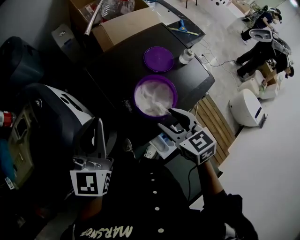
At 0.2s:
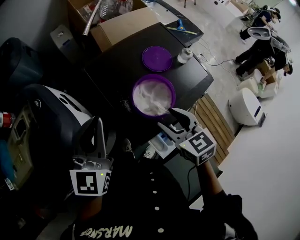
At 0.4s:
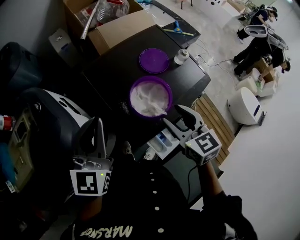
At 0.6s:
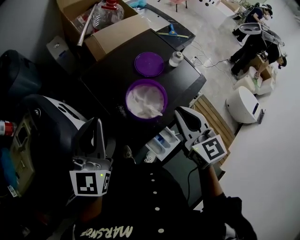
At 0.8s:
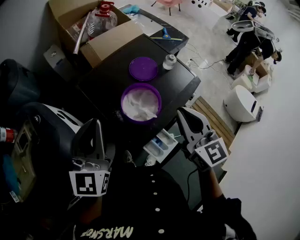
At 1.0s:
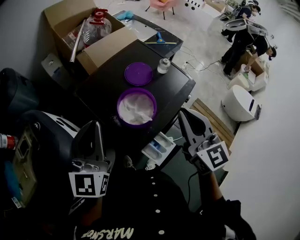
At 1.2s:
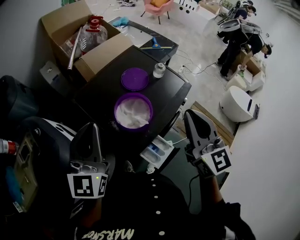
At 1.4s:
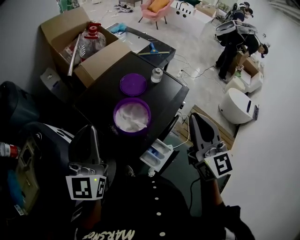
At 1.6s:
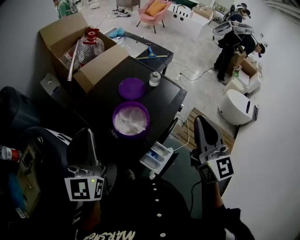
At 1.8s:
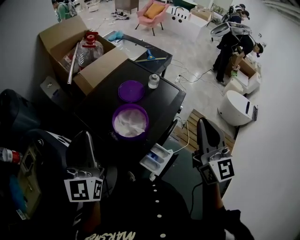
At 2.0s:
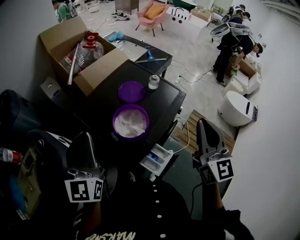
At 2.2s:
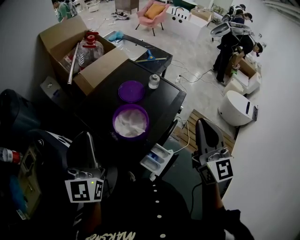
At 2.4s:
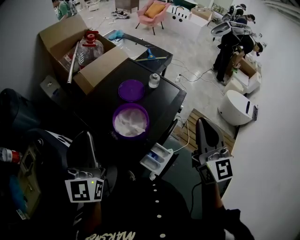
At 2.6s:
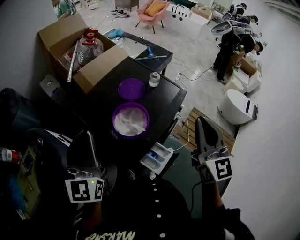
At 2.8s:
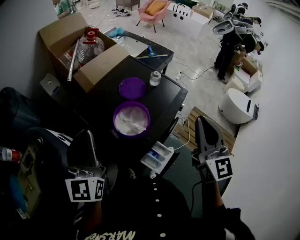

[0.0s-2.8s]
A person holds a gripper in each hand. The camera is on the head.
0.0s to 1.4s: The right gripper heads upward and to the right, covering about 25 cm, points its fingers approximately 40 degrees further upward, and closes its fingers. The left gripper heads upward and to the right, covering roughly 10 cm.
1.4s to 2.8s: The grippers make only small movements.

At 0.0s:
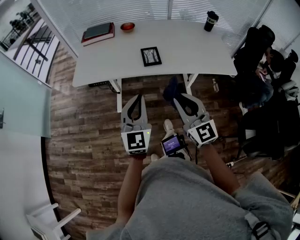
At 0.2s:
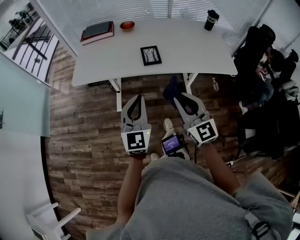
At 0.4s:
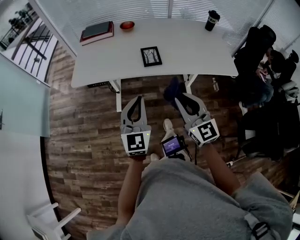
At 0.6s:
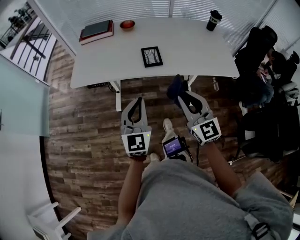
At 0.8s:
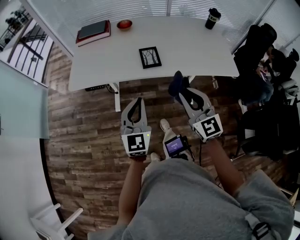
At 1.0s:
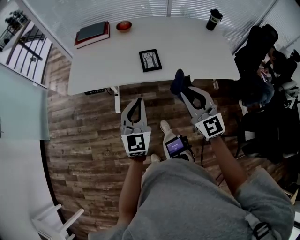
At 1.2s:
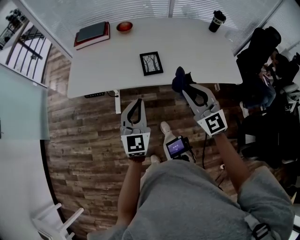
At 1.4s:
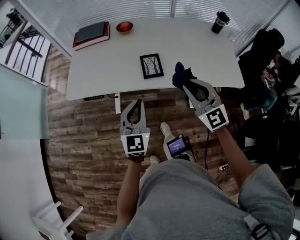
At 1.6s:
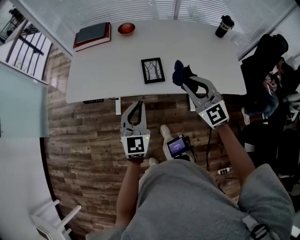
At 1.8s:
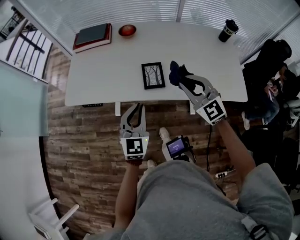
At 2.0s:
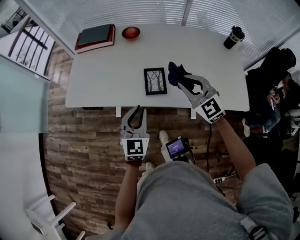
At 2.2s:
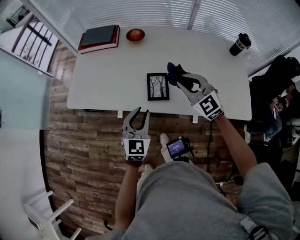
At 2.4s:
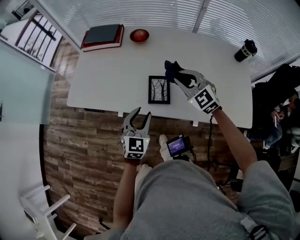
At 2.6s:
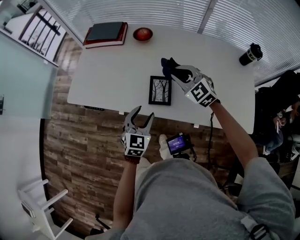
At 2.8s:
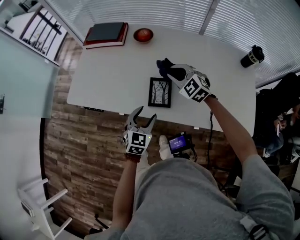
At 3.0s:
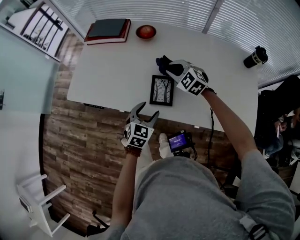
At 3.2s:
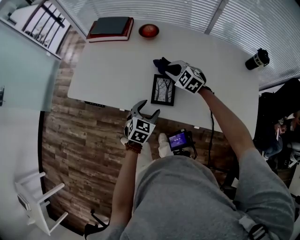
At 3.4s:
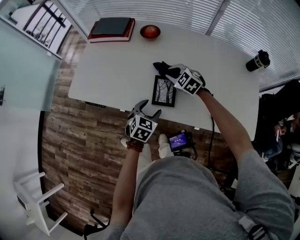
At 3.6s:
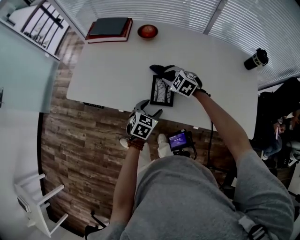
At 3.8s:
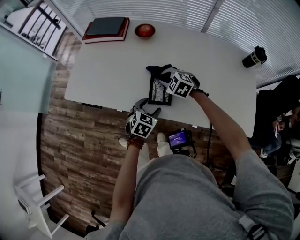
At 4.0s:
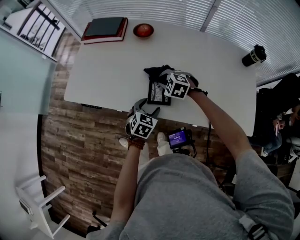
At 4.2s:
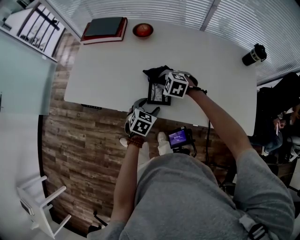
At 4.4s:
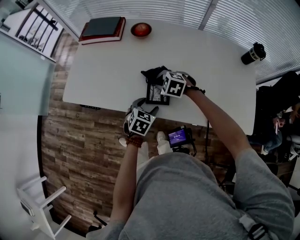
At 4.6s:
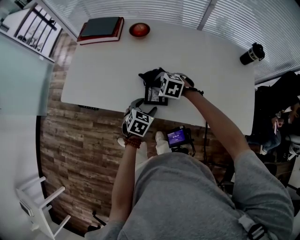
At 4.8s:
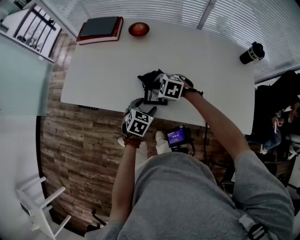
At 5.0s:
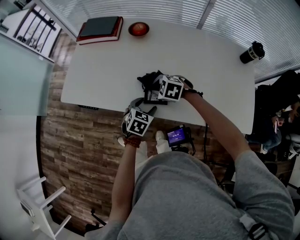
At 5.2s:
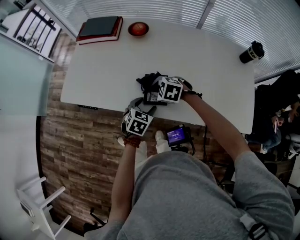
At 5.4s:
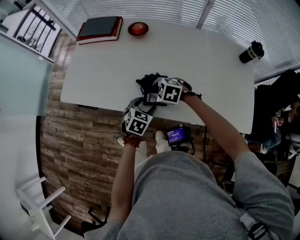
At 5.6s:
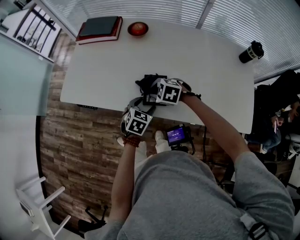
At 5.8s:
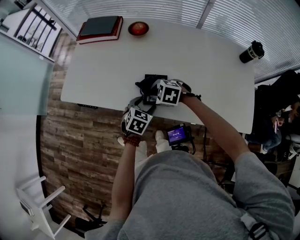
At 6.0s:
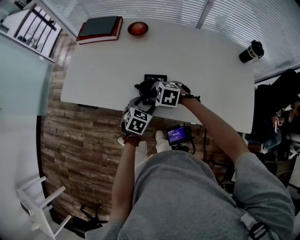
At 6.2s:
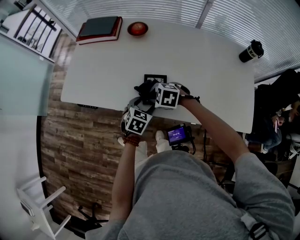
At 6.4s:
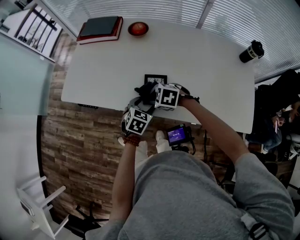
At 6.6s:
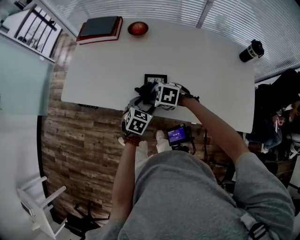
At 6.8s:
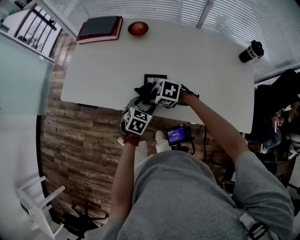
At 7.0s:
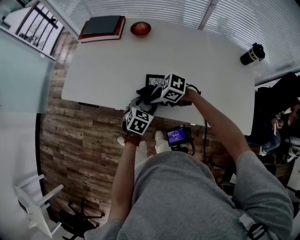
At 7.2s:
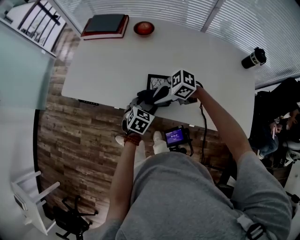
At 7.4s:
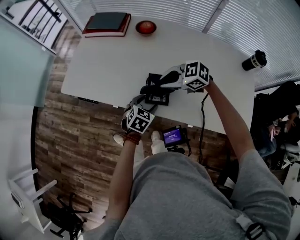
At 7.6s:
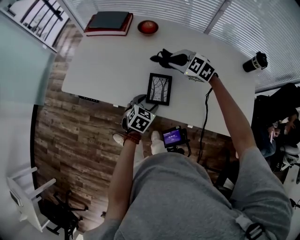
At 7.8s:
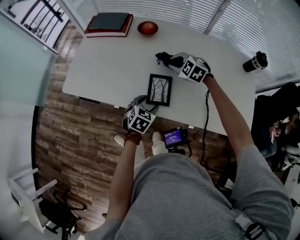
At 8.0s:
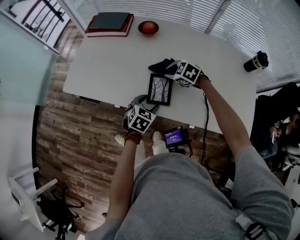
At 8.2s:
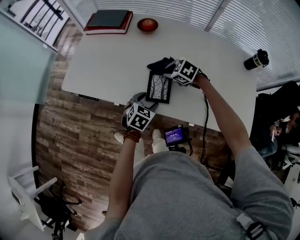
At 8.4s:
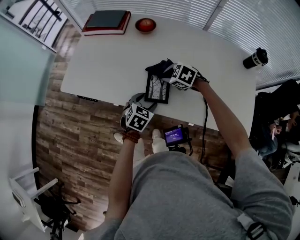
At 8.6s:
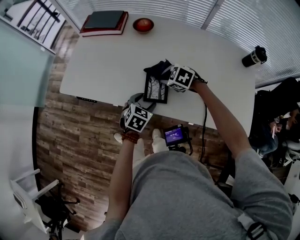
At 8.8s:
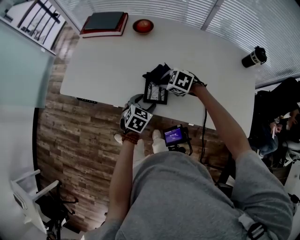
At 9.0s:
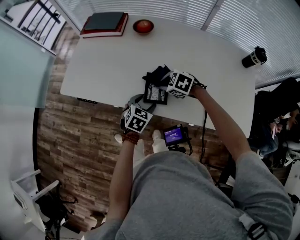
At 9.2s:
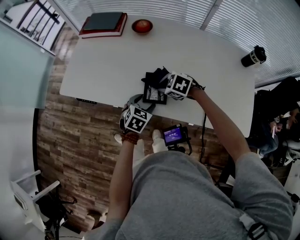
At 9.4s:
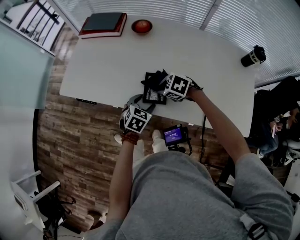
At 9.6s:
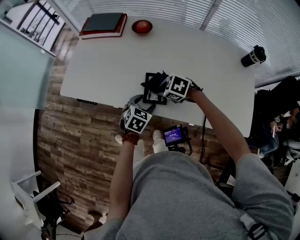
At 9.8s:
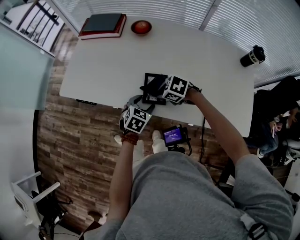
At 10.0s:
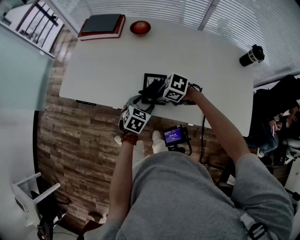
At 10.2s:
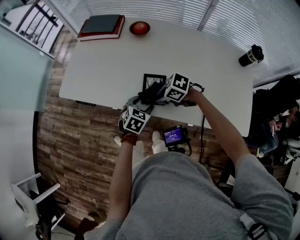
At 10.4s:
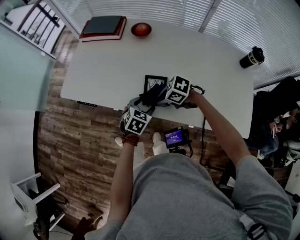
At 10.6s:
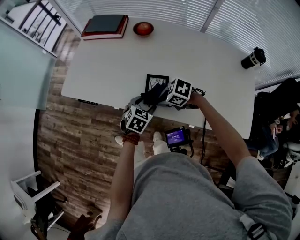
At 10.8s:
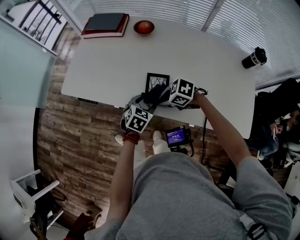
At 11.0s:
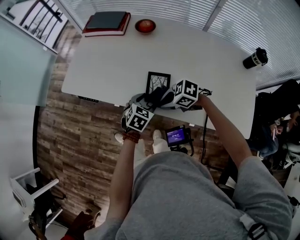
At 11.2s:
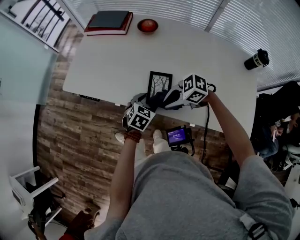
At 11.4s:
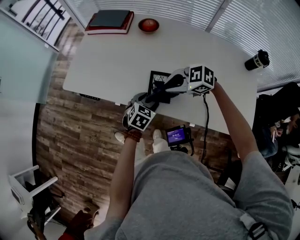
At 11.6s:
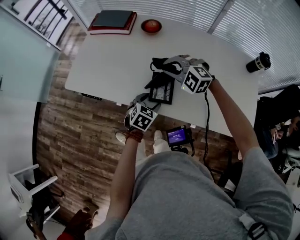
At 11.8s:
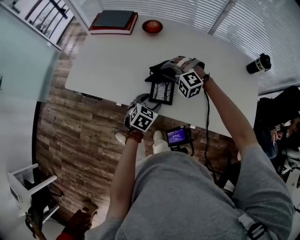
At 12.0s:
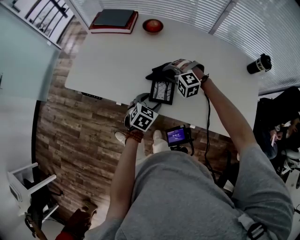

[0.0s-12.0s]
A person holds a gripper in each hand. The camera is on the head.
0.0s to 1.6s: The two grippers go approximately 20 cm forward. The right gripper turns by about 20 degrees.
1.6s to 3.0s: The right gripper is displaced forward and downward by approximately 30 cm, and swivels roughly 30 degrees. Meanwhile the left gripper shifts some 20 cm downward, forward and to the right, rotates roughly 20 degrees, and opens its fingers.
3.0s to 4.4s: The right gripper heads downward and backward, covering about 10 cm, and swivels roughly 20 degrees.
4.4s to 6.0s: The right gripper shifts approximately 5 cm backward.
6.0s to 7.6s: The right gripper changes place by approximately 20 cm, and changes its angle by roughly 20 degrees.
7.6s to 9.0s: The right gripper travels downward and backward by about 15 cm, and changes its angle by some 30 degrees.
9.0s to 10.4s: The right gripper shifts by some 5 cm, and swivels about 20 degrees.
10.4s to 12.0s: The right gripper reaches some 10 cm upward, then returns, and twists some 60 degrees counterclockwise, seen from behind.

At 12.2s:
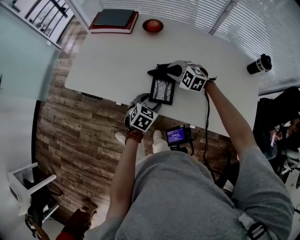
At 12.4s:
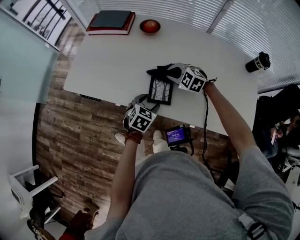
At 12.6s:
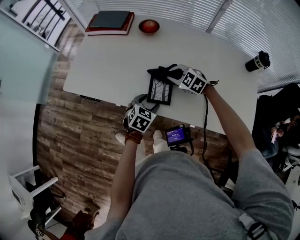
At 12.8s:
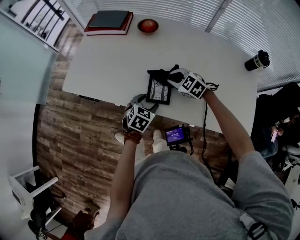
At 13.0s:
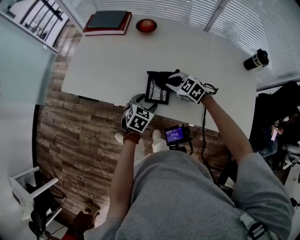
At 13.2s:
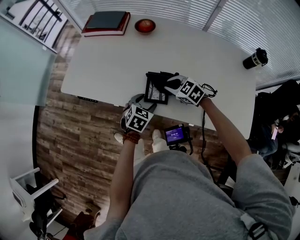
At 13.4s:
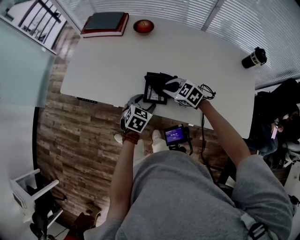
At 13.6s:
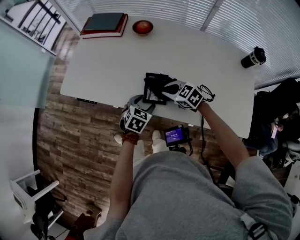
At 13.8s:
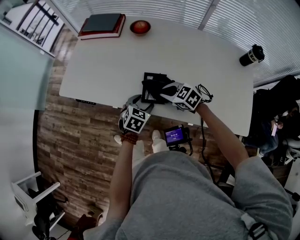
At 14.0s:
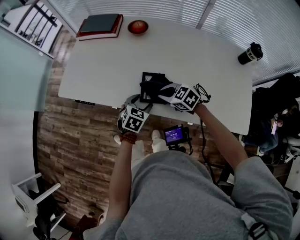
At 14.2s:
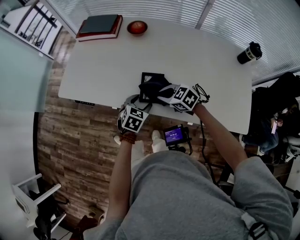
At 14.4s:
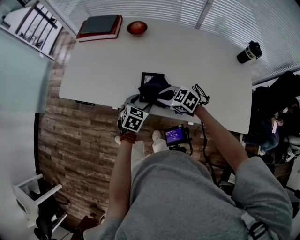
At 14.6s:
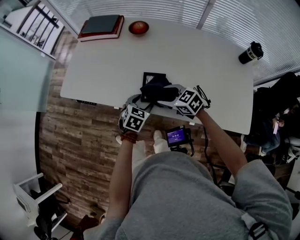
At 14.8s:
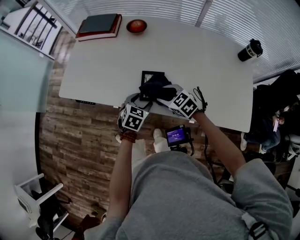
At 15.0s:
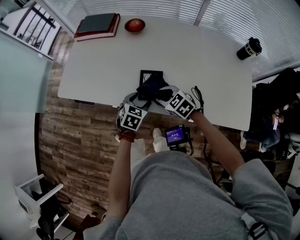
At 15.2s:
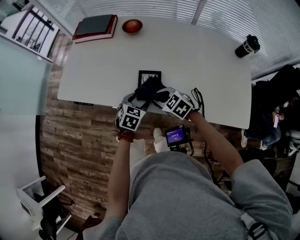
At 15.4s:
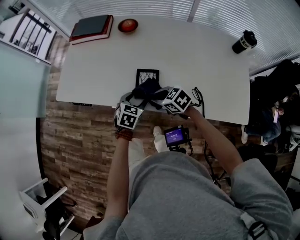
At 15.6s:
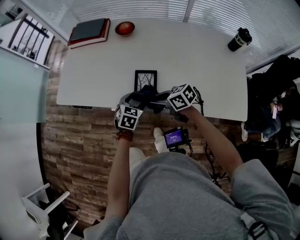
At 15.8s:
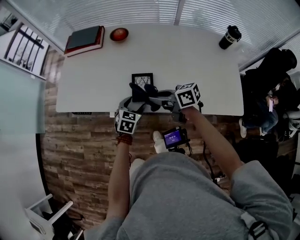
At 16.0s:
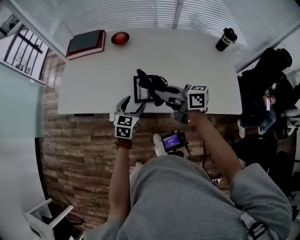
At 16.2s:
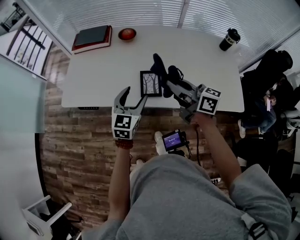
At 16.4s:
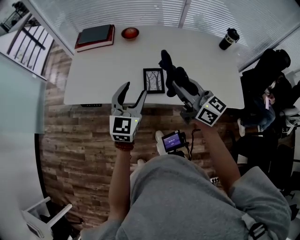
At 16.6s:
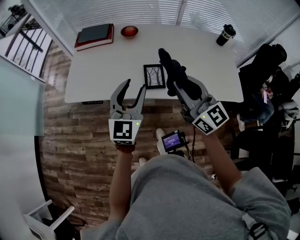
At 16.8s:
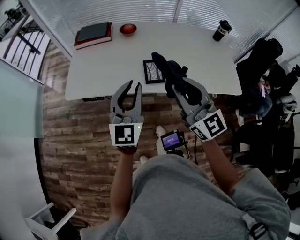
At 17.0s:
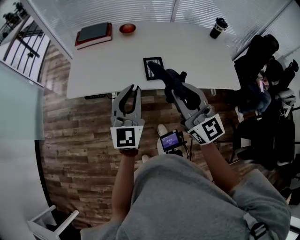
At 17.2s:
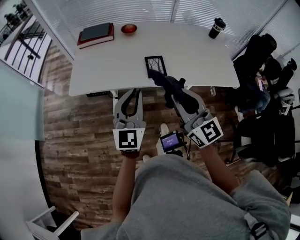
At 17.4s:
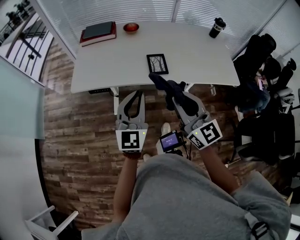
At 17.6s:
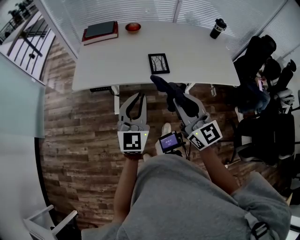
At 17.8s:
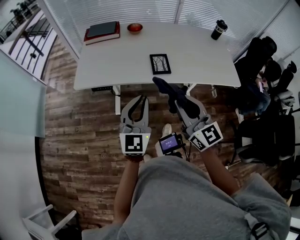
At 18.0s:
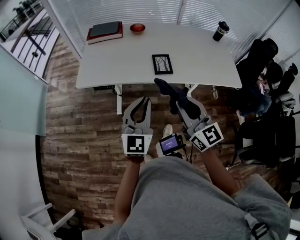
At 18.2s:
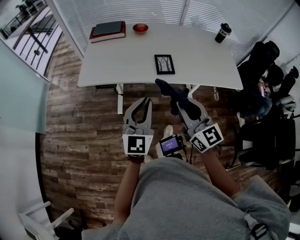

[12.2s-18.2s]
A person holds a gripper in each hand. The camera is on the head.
12.2s to 13.8s: The right gripper is displaced backward by about 10 cm, and rotates about 40 degrees.
13.8s to 15.2s: The right gripper opens and closes again.
15.2s to 16.6s: Both grippers travel together upward, some 30 cm. The right gripper tips its fingers upward by about 50 degrees; the left gripper tips its fingers upward by some 50 degrees.
16.6s to 18.2s: The right gripper goes approximately 20 cm backward and to the left; the left gripper travels backward by approximately 15 cm, and closes its fingers.

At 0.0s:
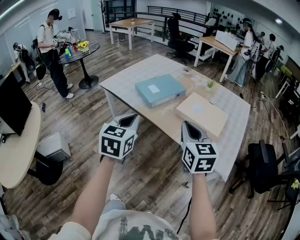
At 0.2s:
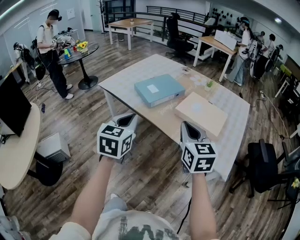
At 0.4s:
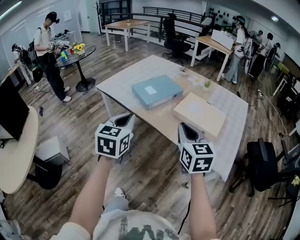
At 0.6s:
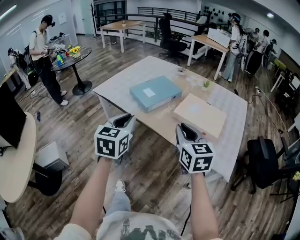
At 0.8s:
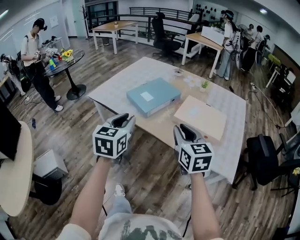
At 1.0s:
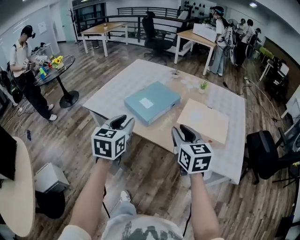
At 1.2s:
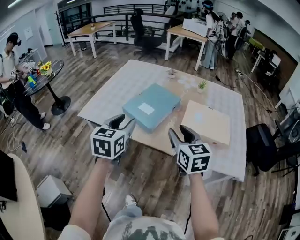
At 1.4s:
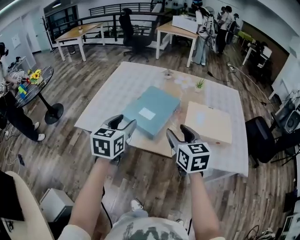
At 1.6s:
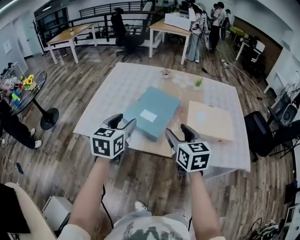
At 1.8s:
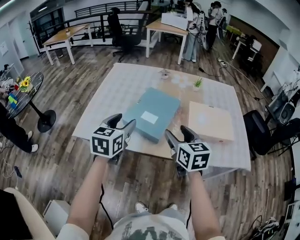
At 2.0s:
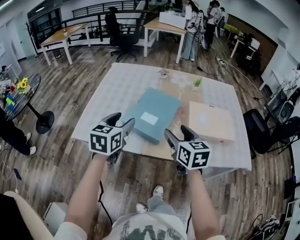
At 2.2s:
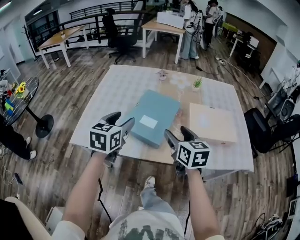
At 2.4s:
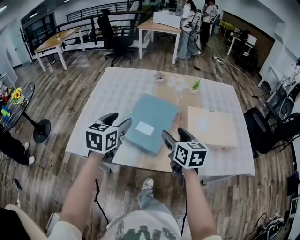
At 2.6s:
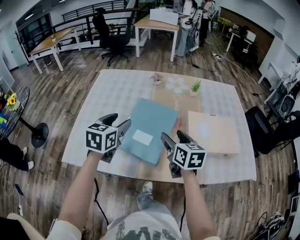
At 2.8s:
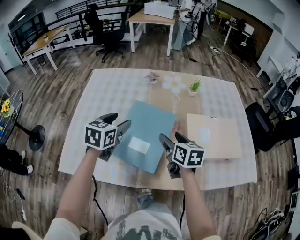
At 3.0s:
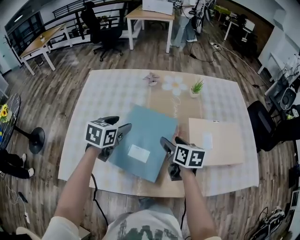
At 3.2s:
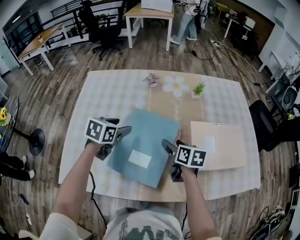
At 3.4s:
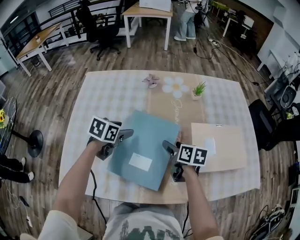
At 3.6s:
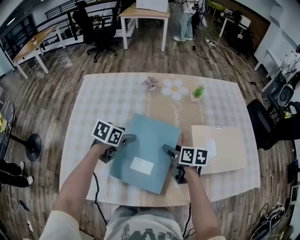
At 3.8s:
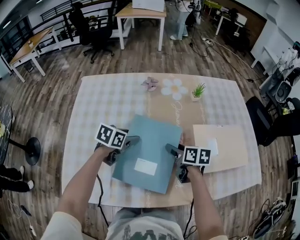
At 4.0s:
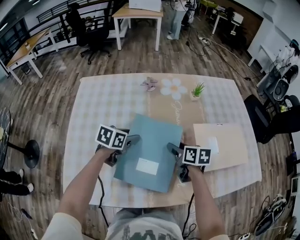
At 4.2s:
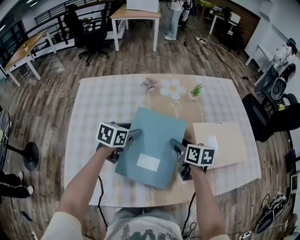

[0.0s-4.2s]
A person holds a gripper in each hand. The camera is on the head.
0.0s to 1.4s: The grippers both shift forward and to the left by roughly 25 cm. The left gripper changes its angle by about 20 degrees, and opens its fingers; the right gripper opens up.
1.4s to 2.8s: The left gripper shifts about 25 cm forward, and turns by some 20 degrees. Meanwhile the right gripper moves forward and downward, roughly 25 cm, and changes its angle by approximately 30 degrees.
2.8s to 4.2s: The left gripper goes roughly 15 cm forward and downward, and changes its angle by approximately 20 degrees. The right gripper travels forward by roughly 5 cm.
